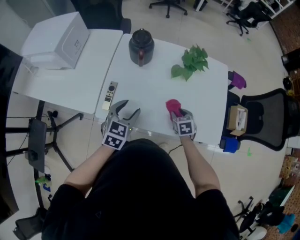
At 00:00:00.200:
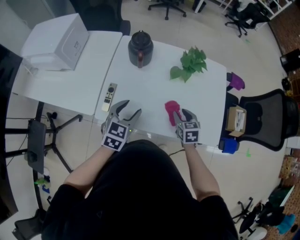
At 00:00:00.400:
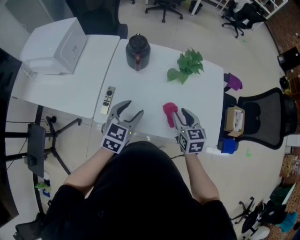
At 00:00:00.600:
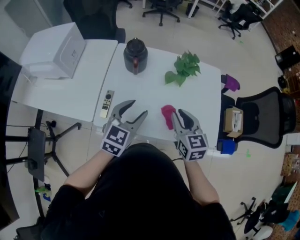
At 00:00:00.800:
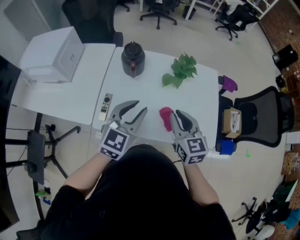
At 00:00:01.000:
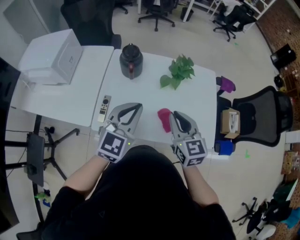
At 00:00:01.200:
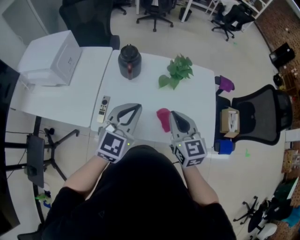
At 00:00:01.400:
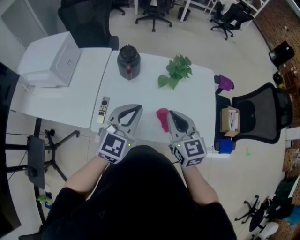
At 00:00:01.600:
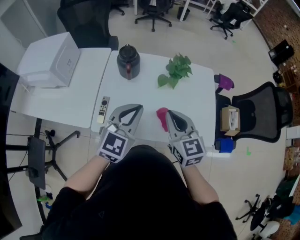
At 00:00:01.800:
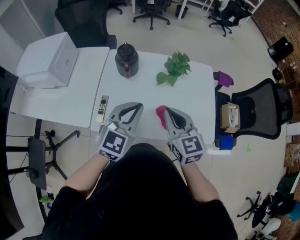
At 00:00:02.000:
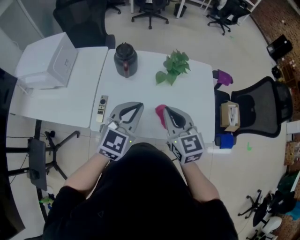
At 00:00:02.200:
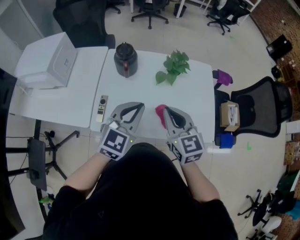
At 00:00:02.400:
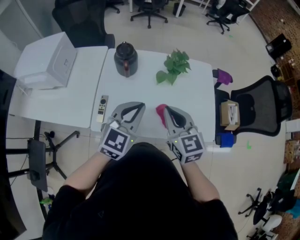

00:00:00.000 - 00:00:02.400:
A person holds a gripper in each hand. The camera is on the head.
00:00:00.000 - 00:00:01.200: The right gripper moves upward, roughly 30 cm, tips its fingers upward by approximately 40 degrees, and closes up, while the left gripper goes approximately 15 cm upward, swivels about 30 degrees, and closes up.
00:00:01.200 - 00:00:02.400: There are only small adjustments of the grippers.

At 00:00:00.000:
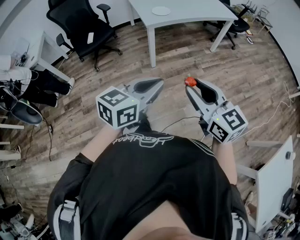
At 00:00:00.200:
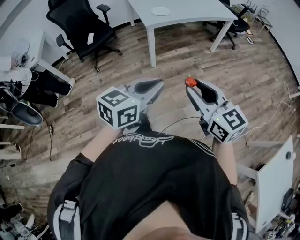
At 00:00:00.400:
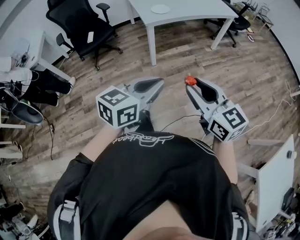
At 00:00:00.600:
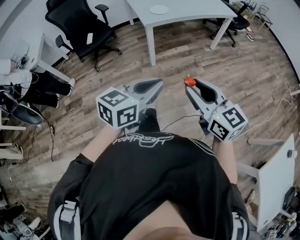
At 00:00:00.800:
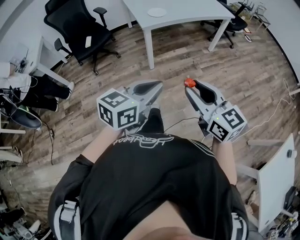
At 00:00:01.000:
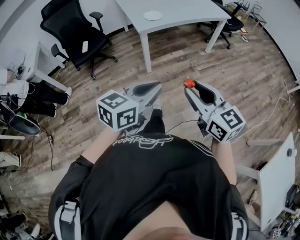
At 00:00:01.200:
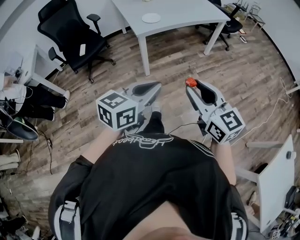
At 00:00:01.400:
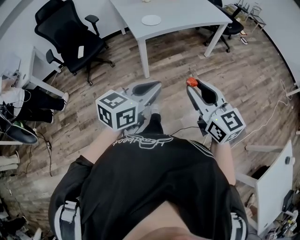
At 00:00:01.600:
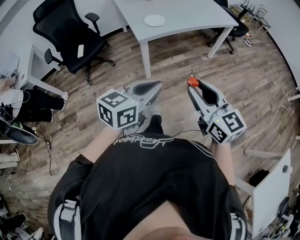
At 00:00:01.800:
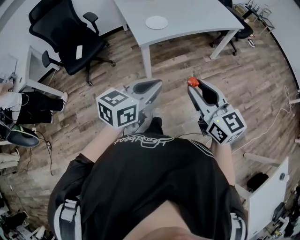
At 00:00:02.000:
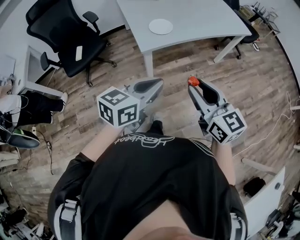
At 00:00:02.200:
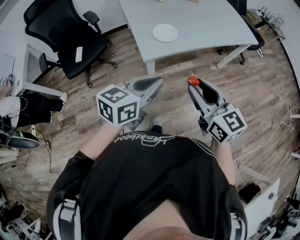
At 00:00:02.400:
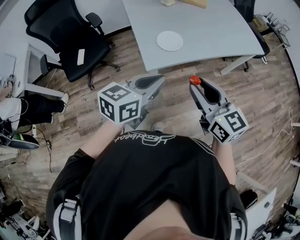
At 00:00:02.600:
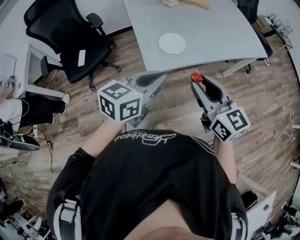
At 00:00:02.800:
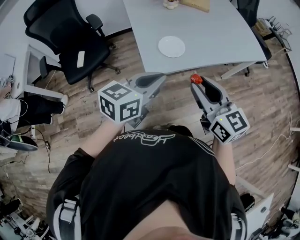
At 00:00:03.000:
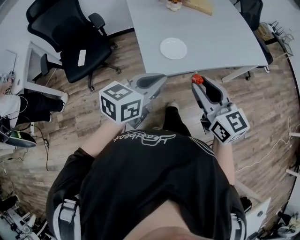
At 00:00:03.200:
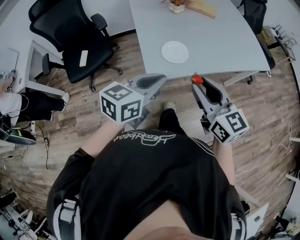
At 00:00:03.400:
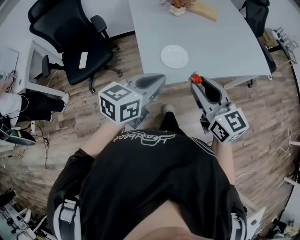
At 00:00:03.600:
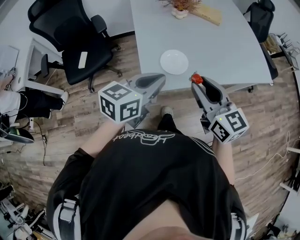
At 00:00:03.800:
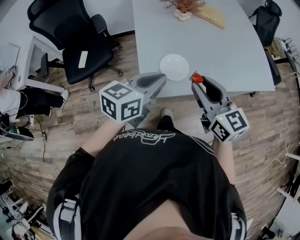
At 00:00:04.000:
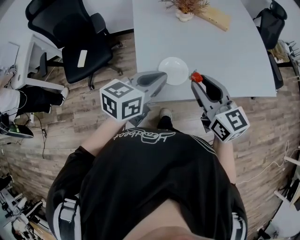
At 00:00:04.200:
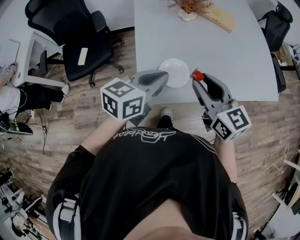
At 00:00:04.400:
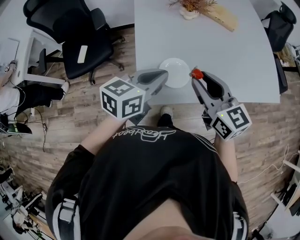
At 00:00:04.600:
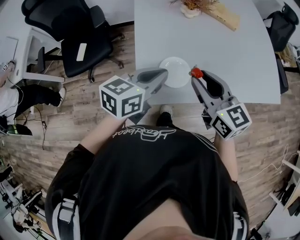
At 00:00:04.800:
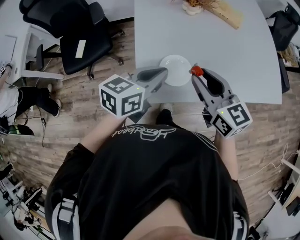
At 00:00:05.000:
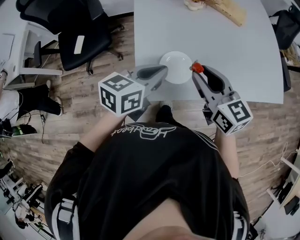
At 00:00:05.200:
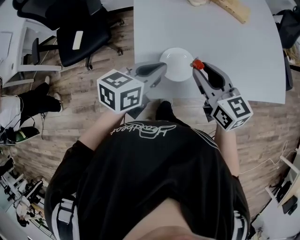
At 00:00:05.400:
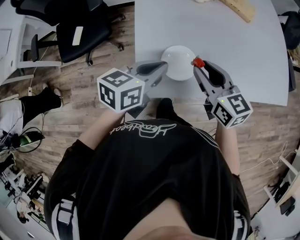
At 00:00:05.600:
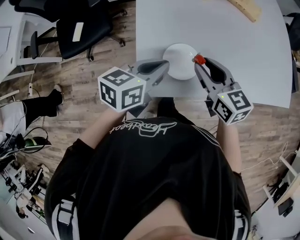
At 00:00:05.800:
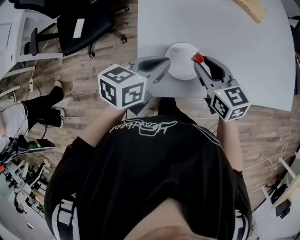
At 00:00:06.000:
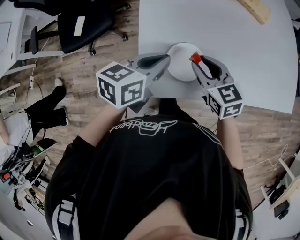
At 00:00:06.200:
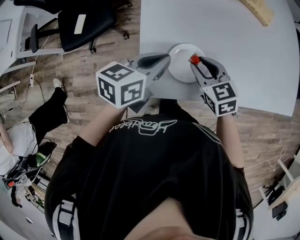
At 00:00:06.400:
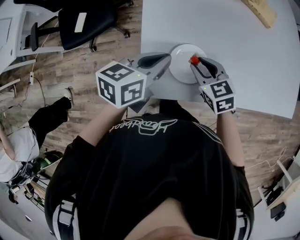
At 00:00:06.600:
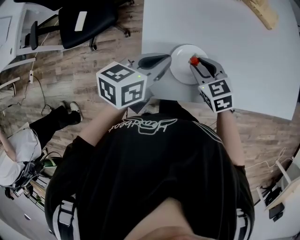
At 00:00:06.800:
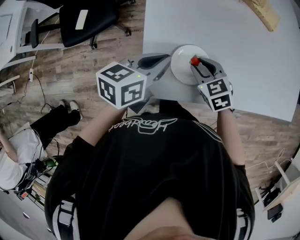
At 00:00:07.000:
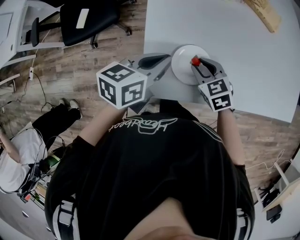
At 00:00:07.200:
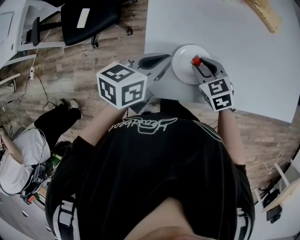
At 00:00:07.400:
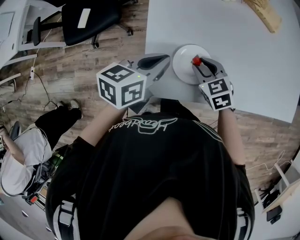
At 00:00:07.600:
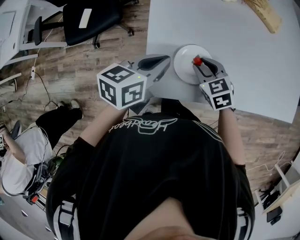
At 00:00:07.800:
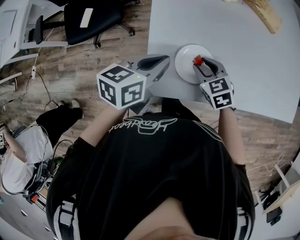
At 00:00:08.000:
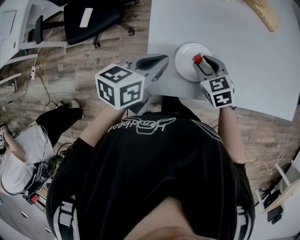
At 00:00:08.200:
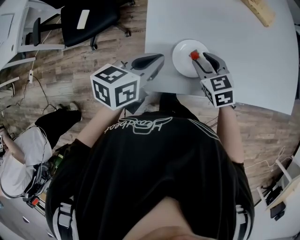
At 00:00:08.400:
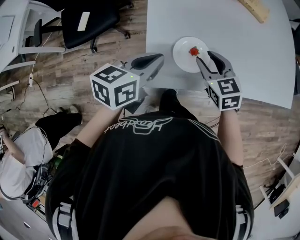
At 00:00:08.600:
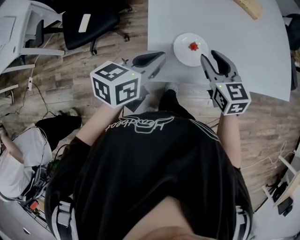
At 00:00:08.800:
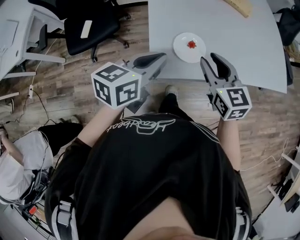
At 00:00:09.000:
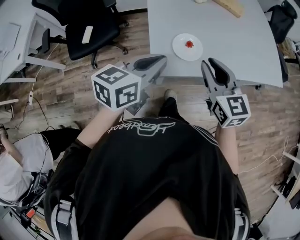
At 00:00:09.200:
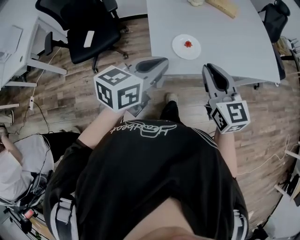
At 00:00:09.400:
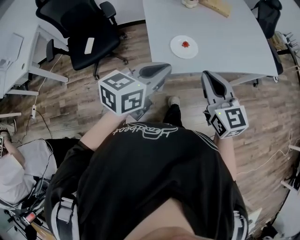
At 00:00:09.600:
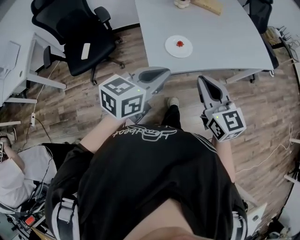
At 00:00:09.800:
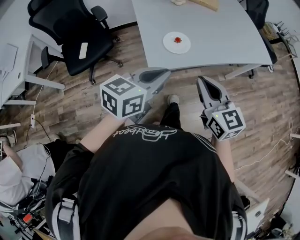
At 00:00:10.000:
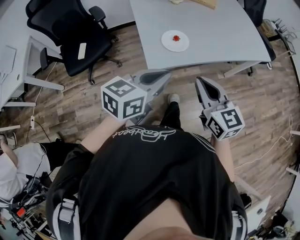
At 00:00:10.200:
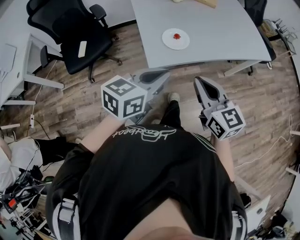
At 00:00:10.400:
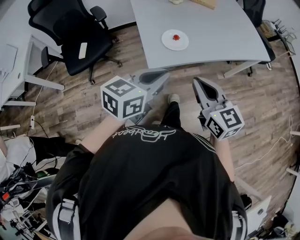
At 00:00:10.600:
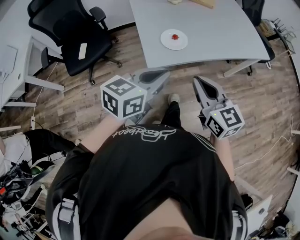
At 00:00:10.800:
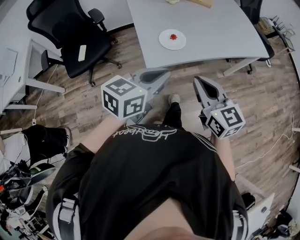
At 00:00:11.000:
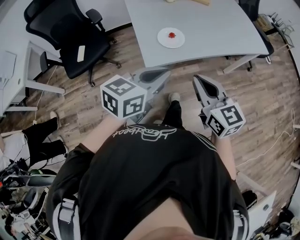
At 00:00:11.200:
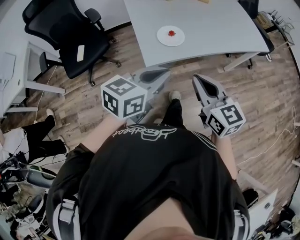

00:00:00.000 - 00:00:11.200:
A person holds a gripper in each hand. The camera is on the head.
00:00:00.000 - 00:00:01.600: Both grippers move forward, roughly 15 cm.
00:00:01.600 - 00:00:03.200: Both grippers move forward, some 40 cm.
00:00:03.200 - 00:00:04.800: The two grippers go approximately 20 cm forward.
00:00:04.800 - 00:00:06.400: The left gripper heads downward and forward, covering some 10 cm. Meanwhile the right gripper is displaced downward by some 20 cm, and changes its angle by some 30 degrees.
00:00:06.400 - 00:00:08.000: There are only small adjustments of the grippers.
00:00:08.000 - 00:00:09.600: The two grippers go about 30 cm backward and upward. The left gripper changes its angle by about 30 degrees. The right gripper tilts its fingers approximately 40 degrees upward, and closes.
00:00:09.600 - 00:00:11.200: The right gripper shifts about 5 cm backward. Meanwhile the left gripper shifts about 5 cm to the right.

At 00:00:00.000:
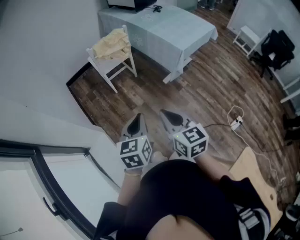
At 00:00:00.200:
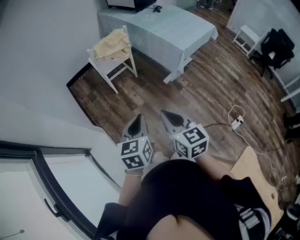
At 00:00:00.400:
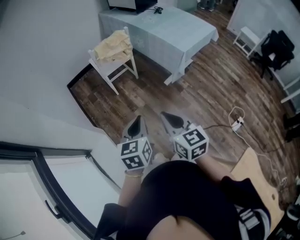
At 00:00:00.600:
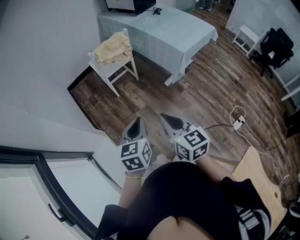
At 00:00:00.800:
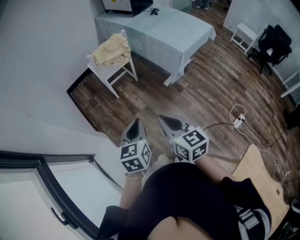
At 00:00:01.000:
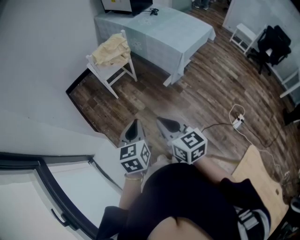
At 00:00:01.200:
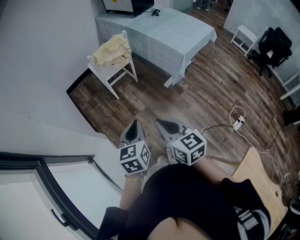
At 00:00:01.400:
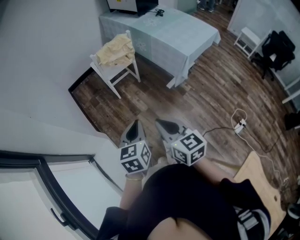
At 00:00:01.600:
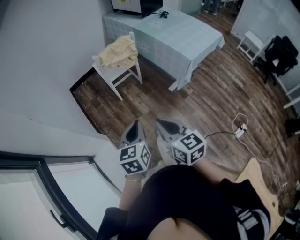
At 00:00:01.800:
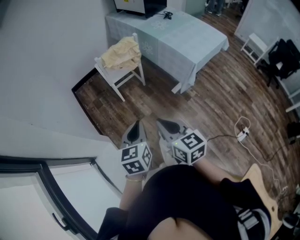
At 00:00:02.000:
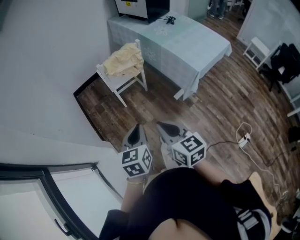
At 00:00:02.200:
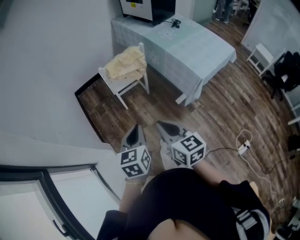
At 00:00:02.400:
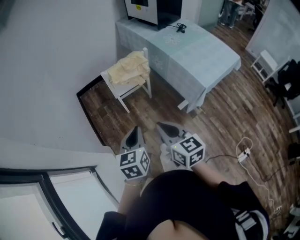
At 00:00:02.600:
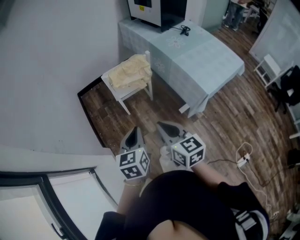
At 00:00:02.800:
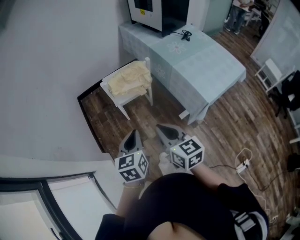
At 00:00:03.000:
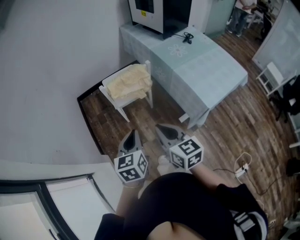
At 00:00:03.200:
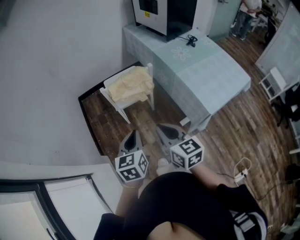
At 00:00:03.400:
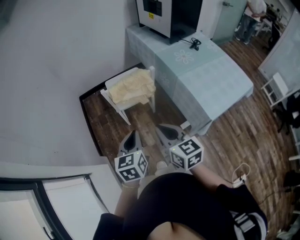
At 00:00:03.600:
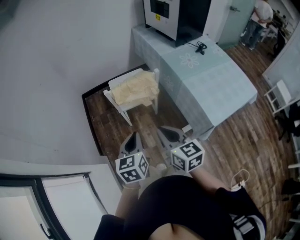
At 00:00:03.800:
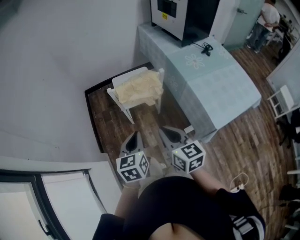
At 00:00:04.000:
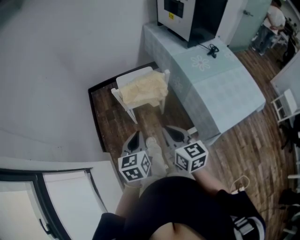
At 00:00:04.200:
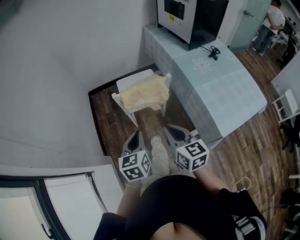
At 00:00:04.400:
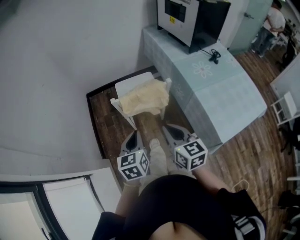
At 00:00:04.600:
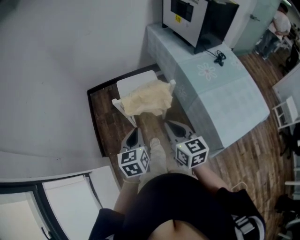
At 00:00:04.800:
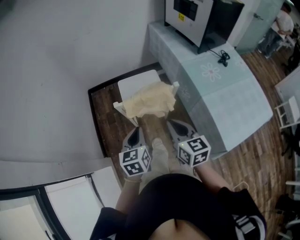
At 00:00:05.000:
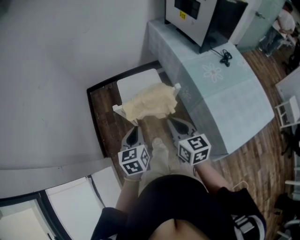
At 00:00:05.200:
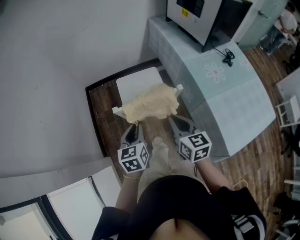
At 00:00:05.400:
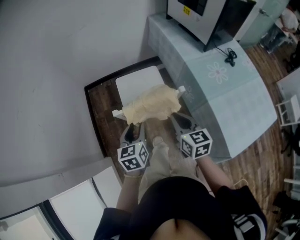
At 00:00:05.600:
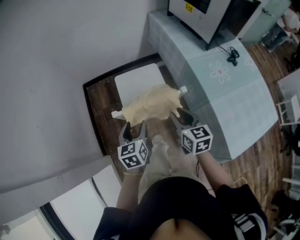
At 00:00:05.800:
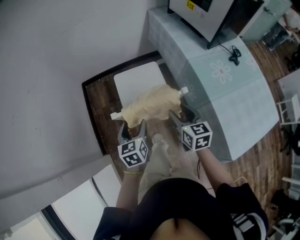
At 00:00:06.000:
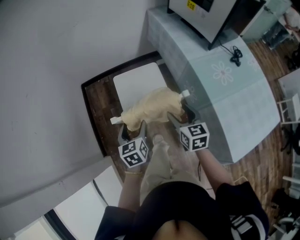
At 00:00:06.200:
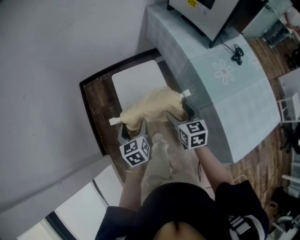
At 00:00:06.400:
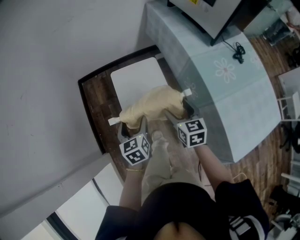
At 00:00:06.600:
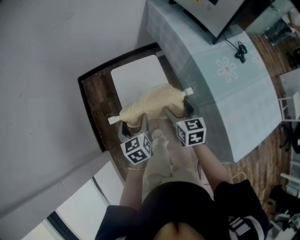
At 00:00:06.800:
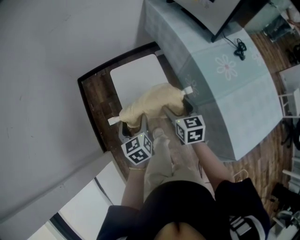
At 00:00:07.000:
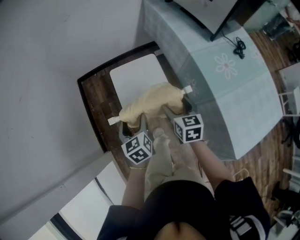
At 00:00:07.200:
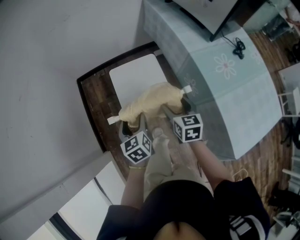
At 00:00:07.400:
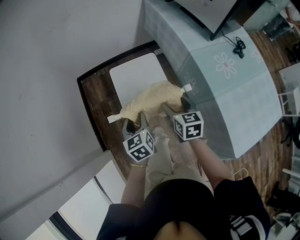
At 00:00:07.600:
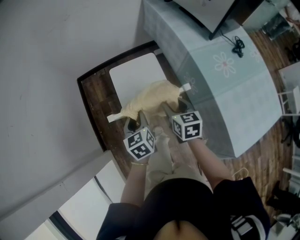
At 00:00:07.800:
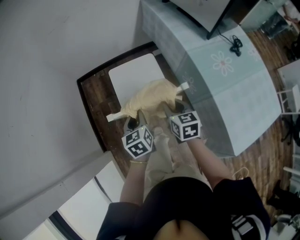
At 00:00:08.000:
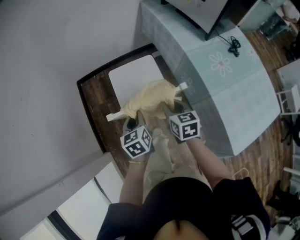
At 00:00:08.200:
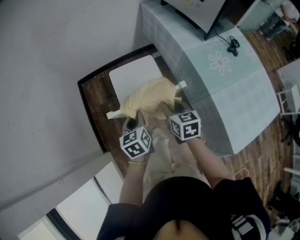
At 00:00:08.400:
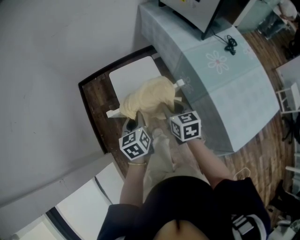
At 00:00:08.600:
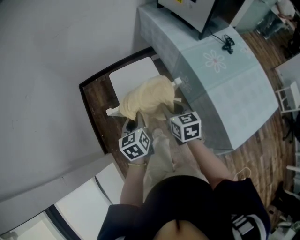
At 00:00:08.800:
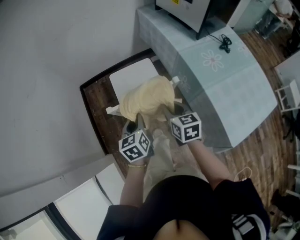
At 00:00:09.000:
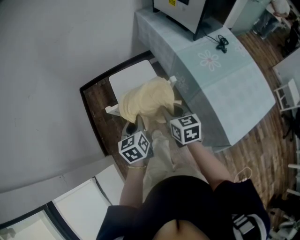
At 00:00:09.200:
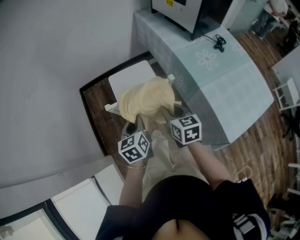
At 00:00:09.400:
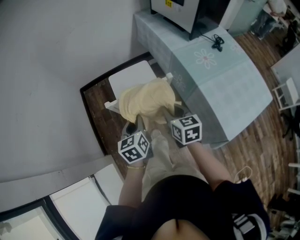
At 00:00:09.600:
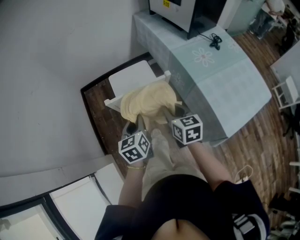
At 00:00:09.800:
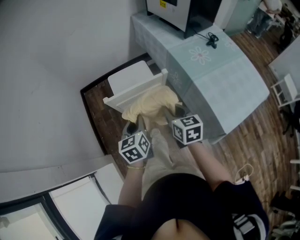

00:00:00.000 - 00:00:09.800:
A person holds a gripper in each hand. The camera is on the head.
00:00:00.000 - 00:00:01.400: The right gripper is displaced to the left by about 5 cm. Meanwhile the left gripper changes place by about 5 cm.
00:00:01.400 - 00:00:02.800: The grippers both shift forward by some 25 cm.
00:00:02.800 - 00:00:04.200: Both grippers travel together forward, about 15 cm.
00:00:04.200 - 00:00:05.600: Both grippers travel together forward and downward, roughly 25 cm. The left gripper opens its fingers.
00:00:05.600 - 00:00:07.000: The left gripper goes approximately 10 cm forward and downward, while the right gripper moves downward and forward, about 10 cm, and opens up.
00:00:07.000 - 00:00:08.400: The right gripper shifts by approximately 5 cm, and closes up; the left gripper ends up approximately 5 cm from where it was, and closes.
00:00:08.400 - 00:00:09.800: Both grippers move backward and upward, some 15 cm.
